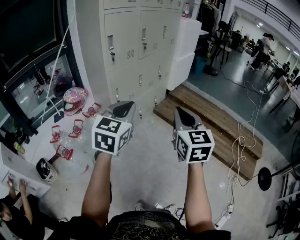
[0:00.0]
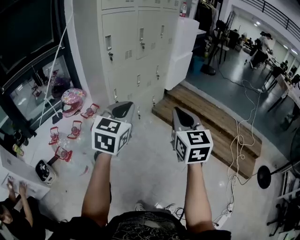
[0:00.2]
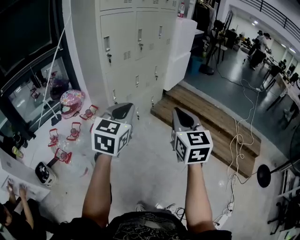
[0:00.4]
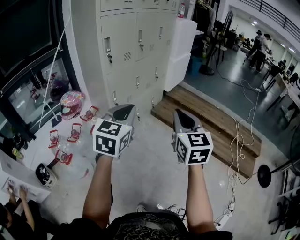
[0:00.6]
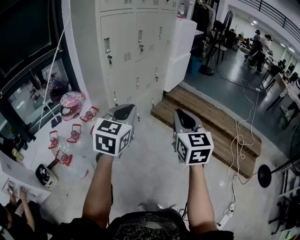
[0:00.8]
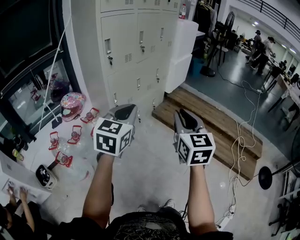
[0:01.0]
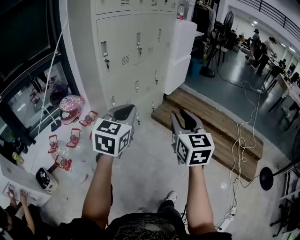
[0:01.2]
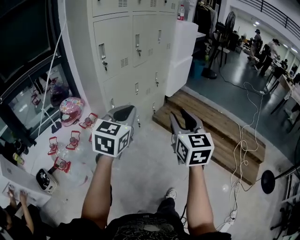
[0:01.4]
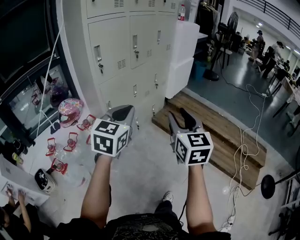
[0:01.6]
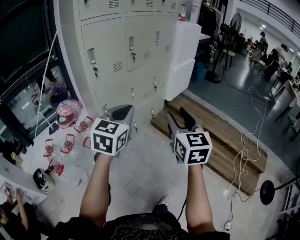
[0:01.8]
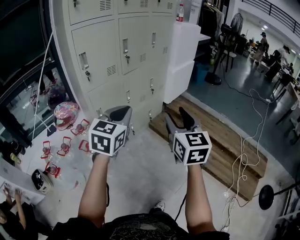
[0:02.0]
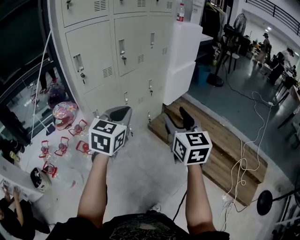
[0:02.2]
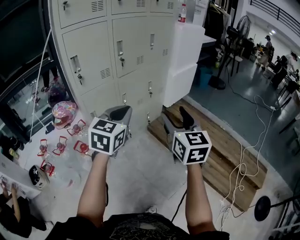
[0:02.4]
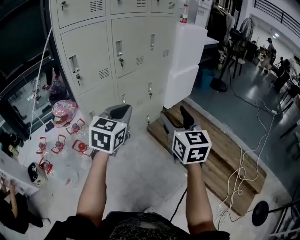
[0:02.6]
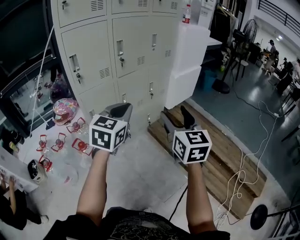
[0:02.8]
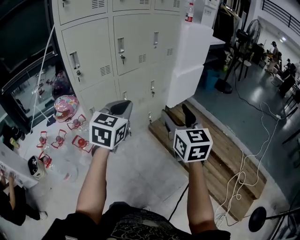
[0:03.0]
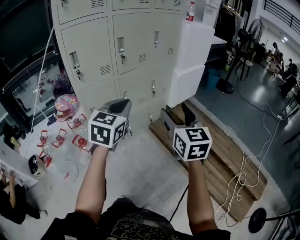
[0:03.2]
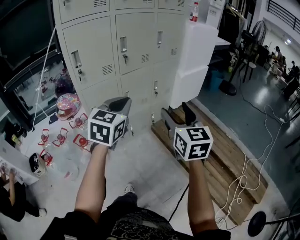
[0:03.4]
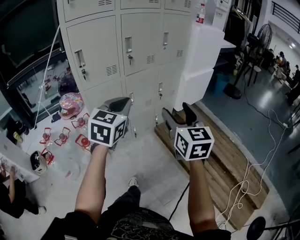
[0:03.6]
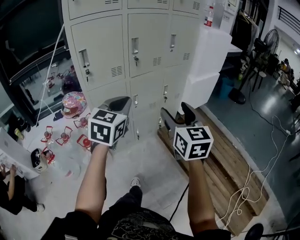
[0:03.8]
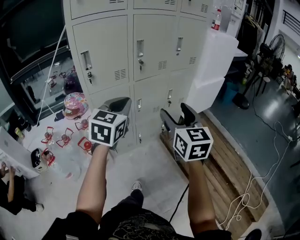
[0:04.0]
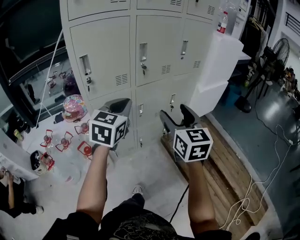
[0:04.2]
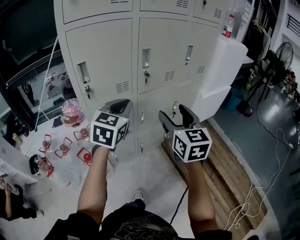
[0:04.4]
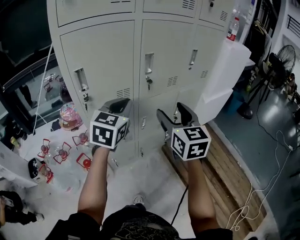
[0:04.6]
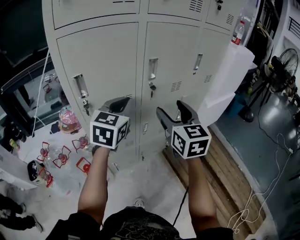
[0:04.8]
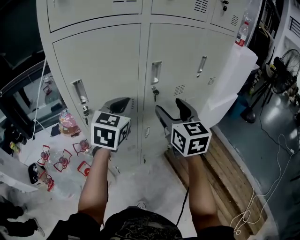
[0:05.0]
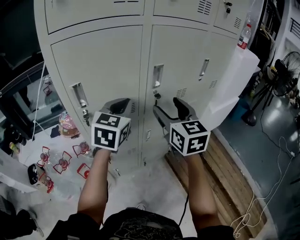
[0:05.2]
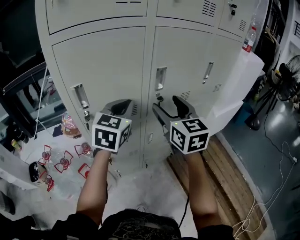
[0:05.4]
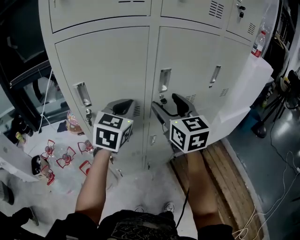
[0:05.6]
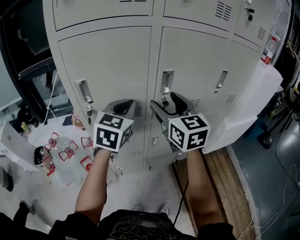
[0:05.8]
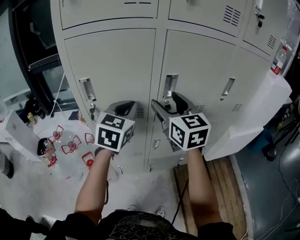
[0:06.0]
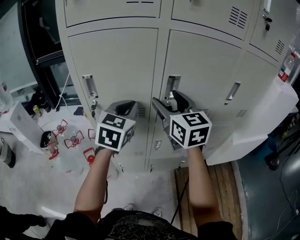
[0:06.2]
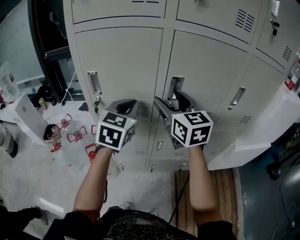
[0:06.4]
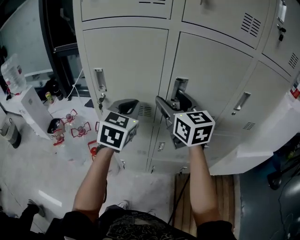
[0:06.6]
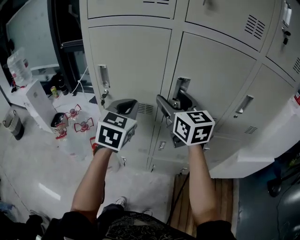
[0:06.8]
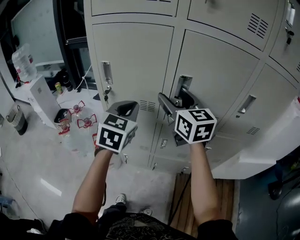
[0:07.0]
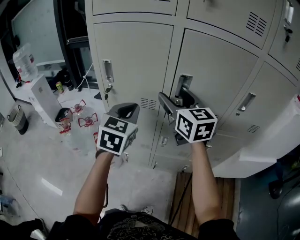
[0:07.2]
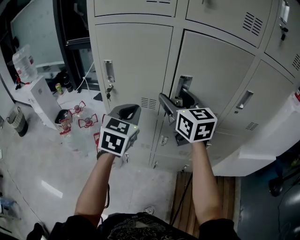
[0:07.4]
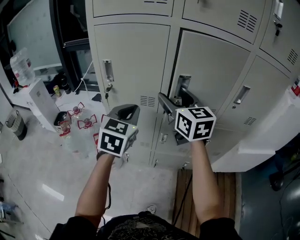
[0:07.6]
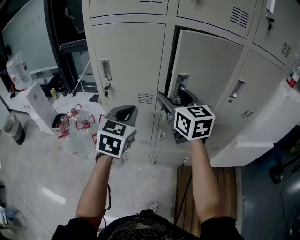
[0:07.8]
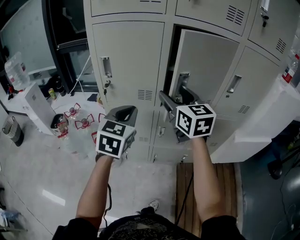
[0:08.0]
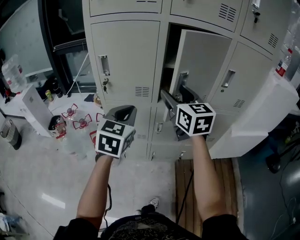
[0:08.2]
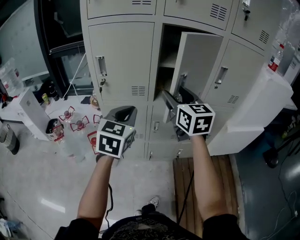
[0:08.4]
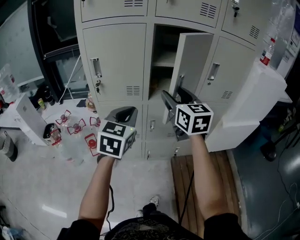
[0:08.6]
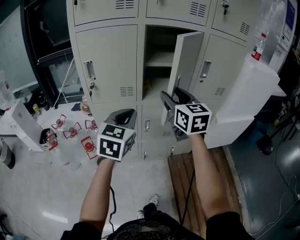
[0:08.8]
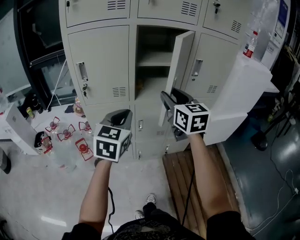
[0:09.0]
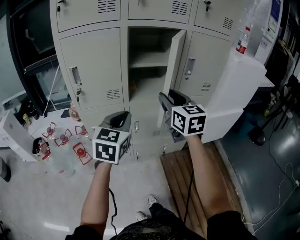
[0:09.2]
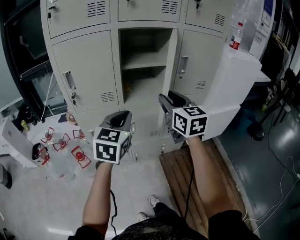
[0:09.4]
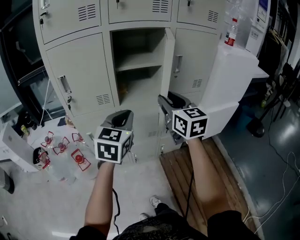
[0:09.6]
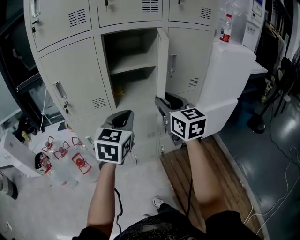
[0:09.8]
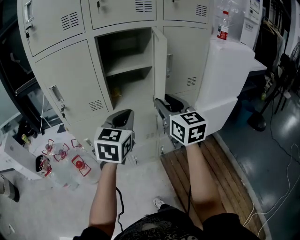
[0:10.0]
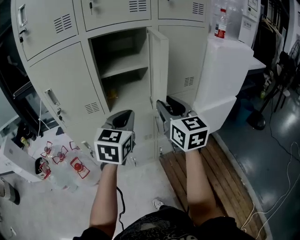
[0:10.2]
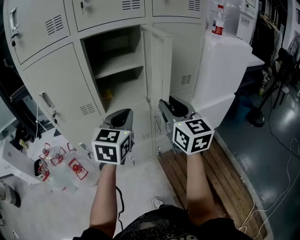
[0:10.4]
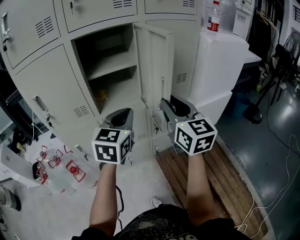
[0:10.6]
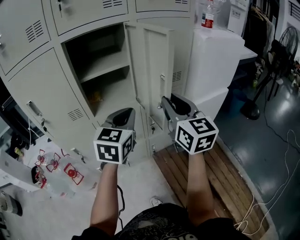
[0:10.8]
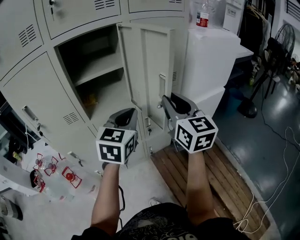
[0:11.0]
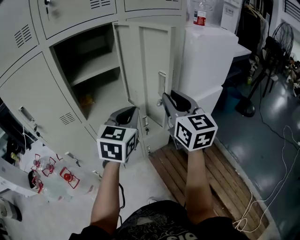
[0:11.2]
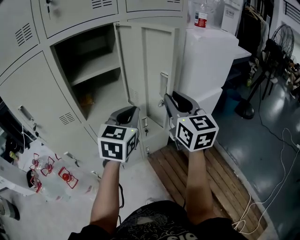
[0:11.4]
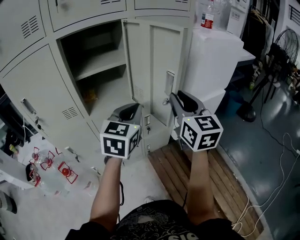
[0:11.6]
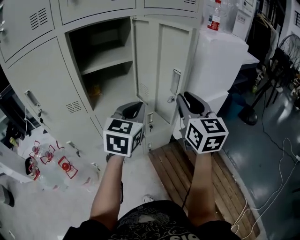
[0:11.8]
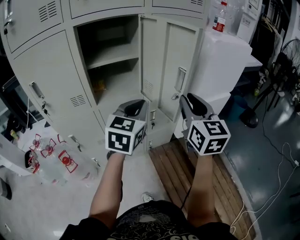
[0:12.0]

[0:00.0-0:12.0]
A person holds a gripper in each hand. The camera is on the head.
0:00.0 to 0:01.6: Both grippers move forward, about 10 cm. The right gripper opens.
0:01.6 to 0:03.0: The two grippers go about 25 cm forward and to the right. The right gripper opens up.
0:03.0 to 0:04.4: Both grippers move forward and to the left, about 25 cm.
0:04.4 to 0:06.0: Both grippers move forward, about 20 cm. The right gripper swivels some 30 degrees.
0:06.0 to 0:07.6: The left gripper goes approximately 10 cm backward.
0:07.6 to 0:09.0: The two grippers go some 15 cm backward and to the right. The right gripper closes up.
0:09.0 to 0:10.4: Both grippers travel together to the right, some 15 cm.
0:10.4 to 0:12.0: The two grippers go approximately 10 cm to the right.

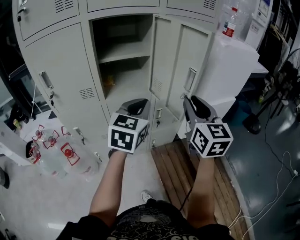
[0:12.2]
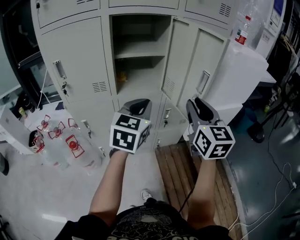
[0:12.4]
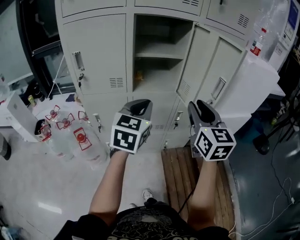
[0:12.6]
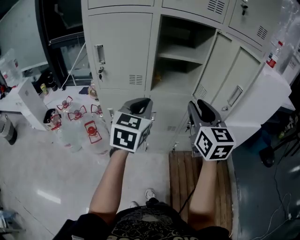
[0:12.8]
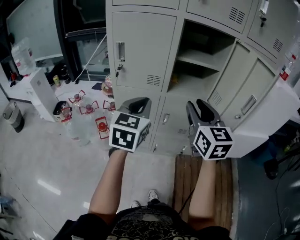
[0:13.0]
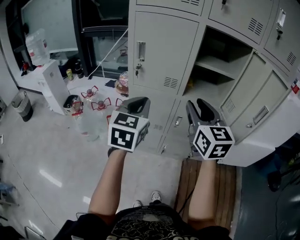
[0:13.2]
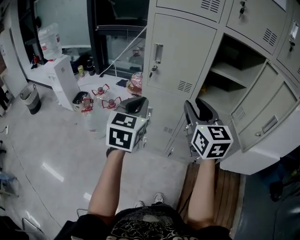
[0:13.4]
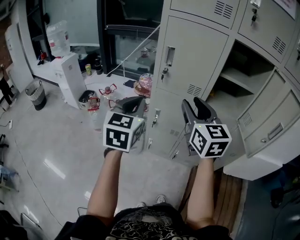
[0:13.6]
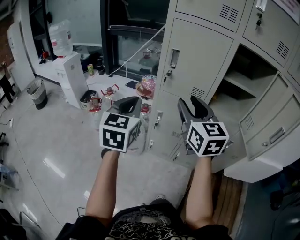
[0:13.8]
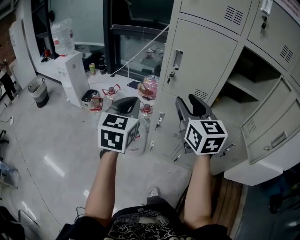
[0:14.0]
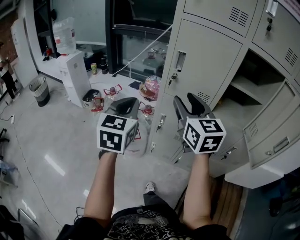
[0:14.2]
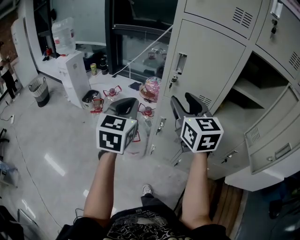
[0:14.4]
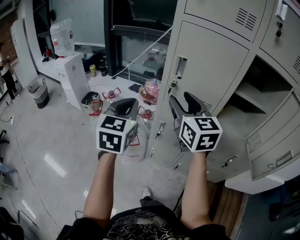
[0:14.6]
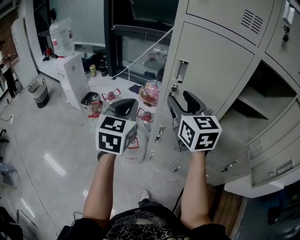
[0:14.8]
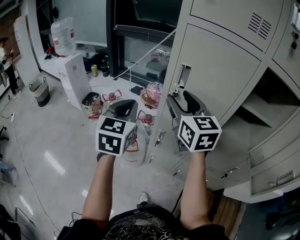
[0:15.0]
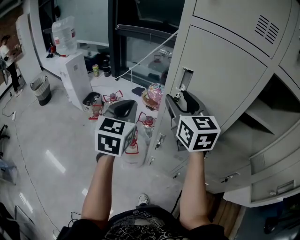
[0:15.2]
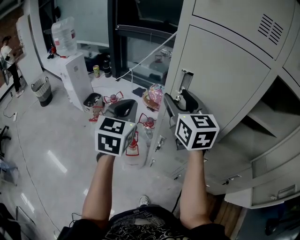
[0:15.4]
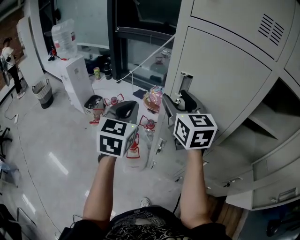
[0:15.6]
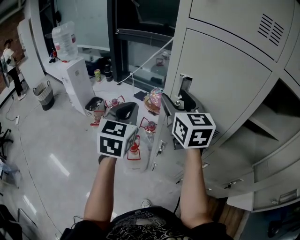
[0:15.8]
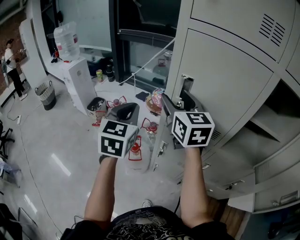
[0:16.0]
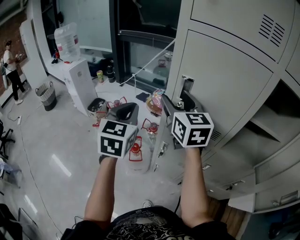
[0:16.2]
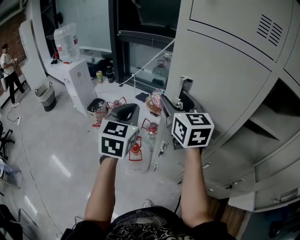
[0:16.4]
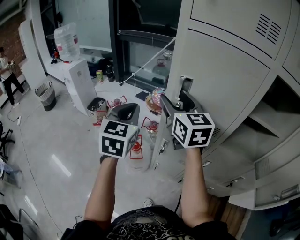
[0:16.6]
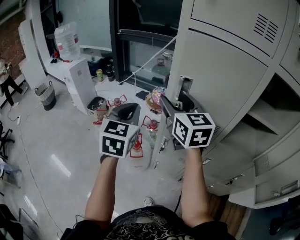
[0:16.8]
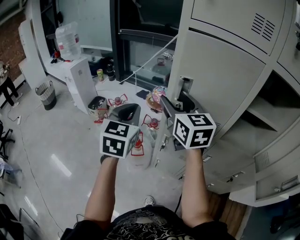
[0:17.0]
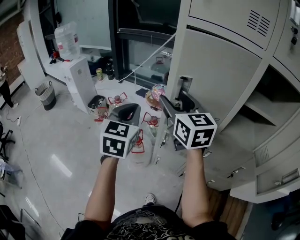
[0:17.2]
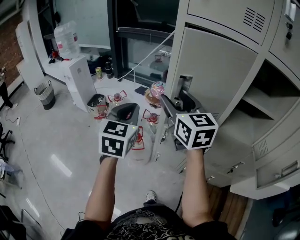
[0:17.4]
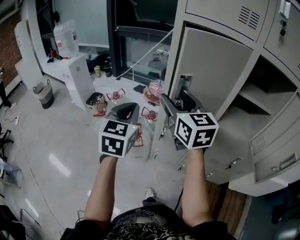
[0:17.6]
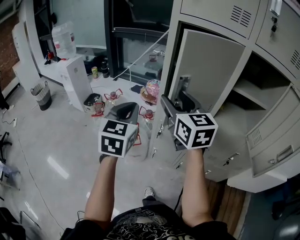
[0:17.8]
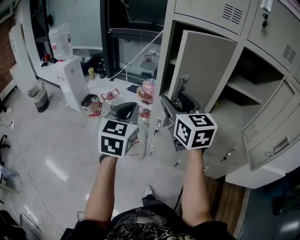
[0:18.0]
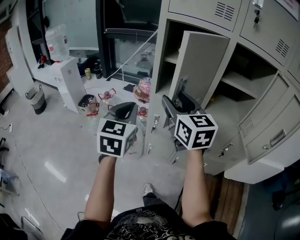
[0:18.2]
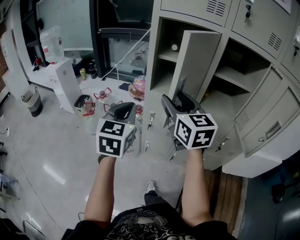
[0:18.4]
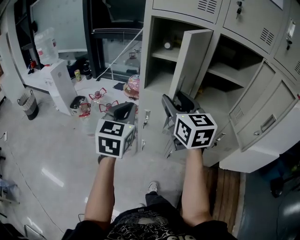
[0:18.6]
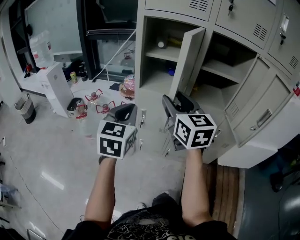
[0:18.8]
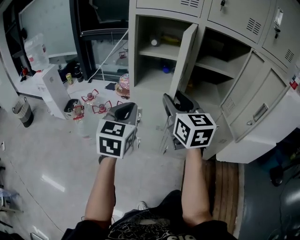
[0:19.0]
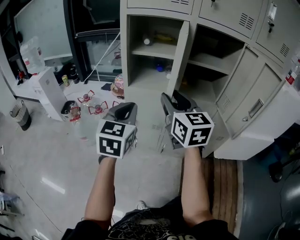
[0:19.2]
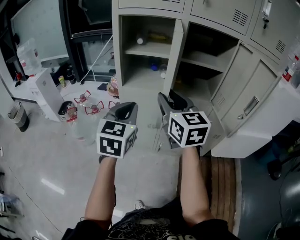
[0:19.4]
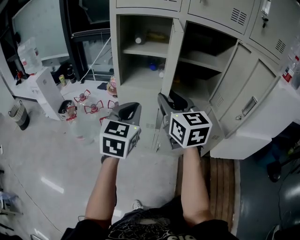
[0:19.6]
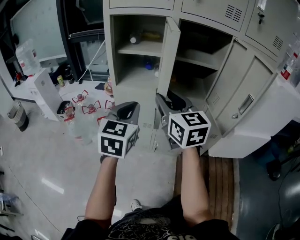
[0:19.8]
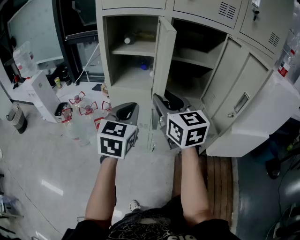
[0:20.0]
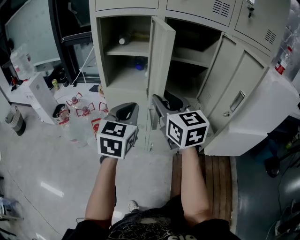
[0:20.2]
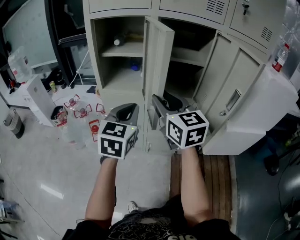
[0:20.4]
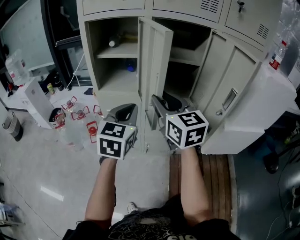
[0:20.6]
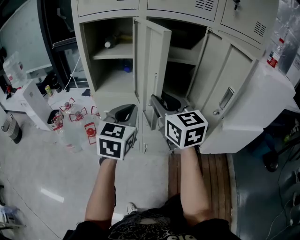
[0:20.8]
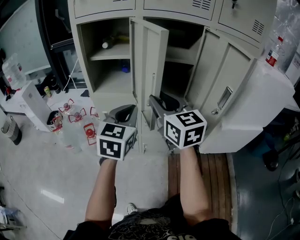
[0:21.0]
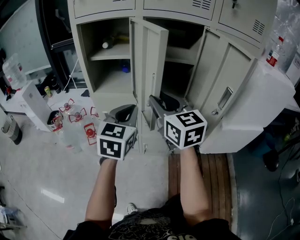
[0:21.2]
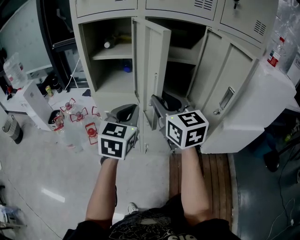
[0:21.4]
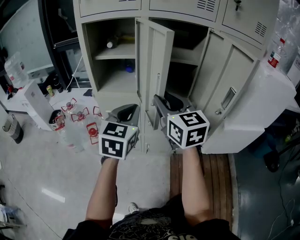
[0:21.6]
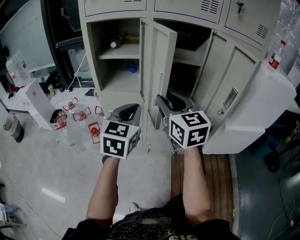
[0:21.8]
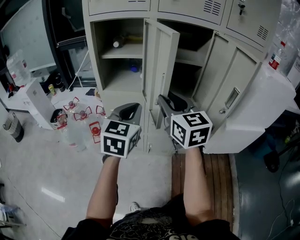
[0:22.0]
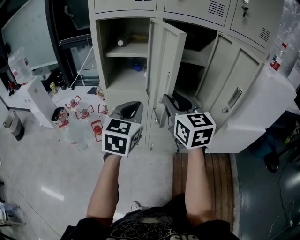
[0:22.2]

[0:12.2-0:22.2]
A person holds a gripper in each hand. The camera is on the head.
0:12.2 to 0:13.6: The two grippers travel together, roughly 40 cm. The left gripper rotates some 40 degrees, while the right gripper changes its angle by some 40 degrees.
0:13.6 to 0:15.0: The two grippers go some 15 cm forward.
0:15.0 to 0:16.4: Both grippers move forward, roughly 5 cm.
0:16.4 to 0:18.0: Both grippers travel together backward, approximately 15 cm.
0:18.0 to 0:19.4: The grippers both shift to the right and backward by about 15 cm.
0:19.4 to 0:20.8: Both grippers move to the right, some 15 cm.
0:20.8 to 0:22.2: There are only small adjustments of the grippers.

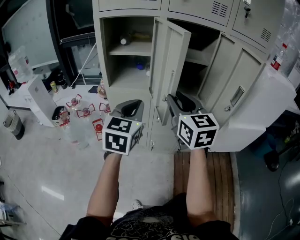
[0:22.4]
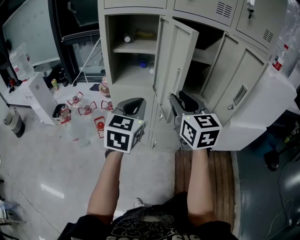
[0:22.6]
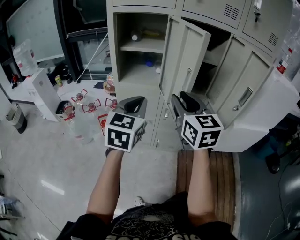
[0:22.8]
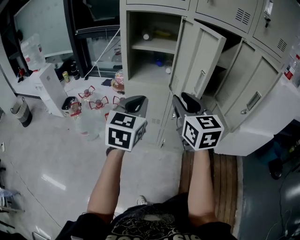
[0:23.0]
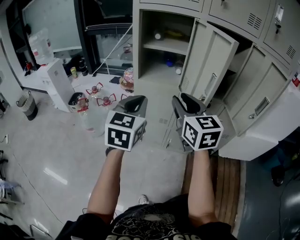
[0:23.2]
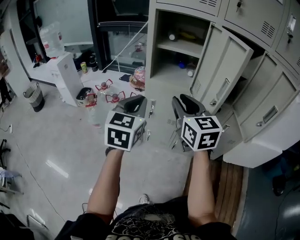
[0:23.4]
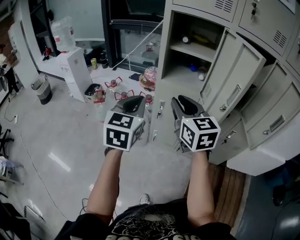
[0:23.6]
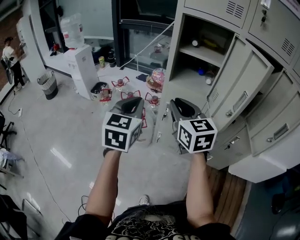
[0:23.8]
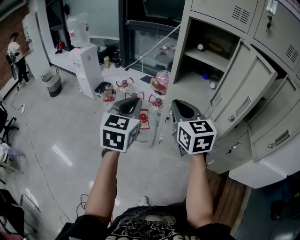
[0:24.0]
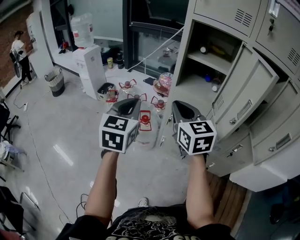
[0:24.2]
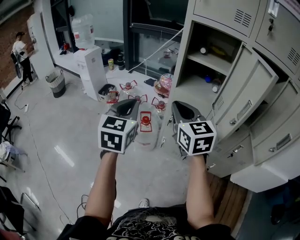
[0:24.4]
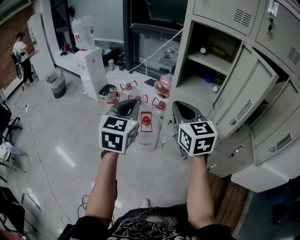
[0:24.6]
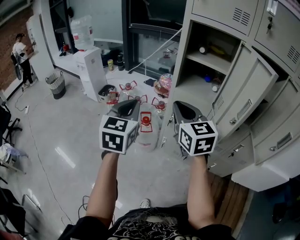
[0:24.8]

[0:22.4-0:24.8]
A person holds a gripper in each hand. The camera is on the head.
0:22.4 to 0:23.6: Both grippers move to the left, approximately 20 cm.
0:23.6 to 0:24.8: The left gripper travels to the left by roughly 5 cm. Meanwhile the right gripper shifts by roughly 5 cm.
